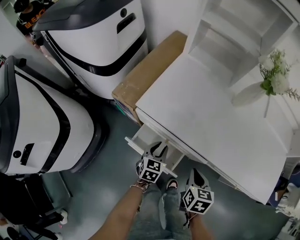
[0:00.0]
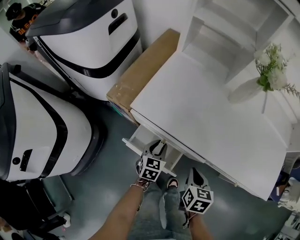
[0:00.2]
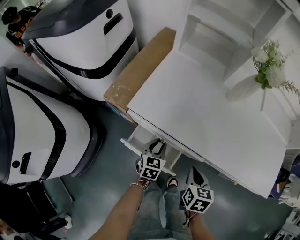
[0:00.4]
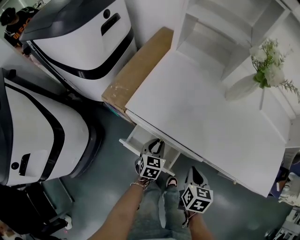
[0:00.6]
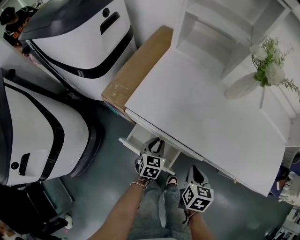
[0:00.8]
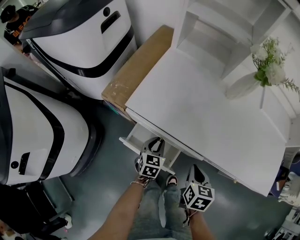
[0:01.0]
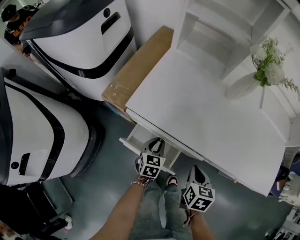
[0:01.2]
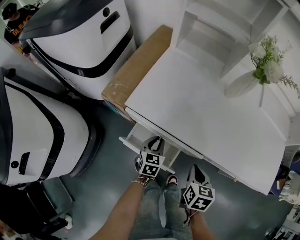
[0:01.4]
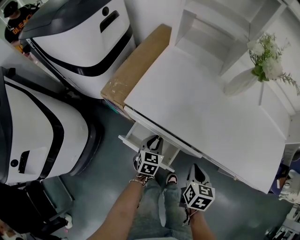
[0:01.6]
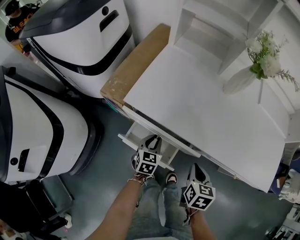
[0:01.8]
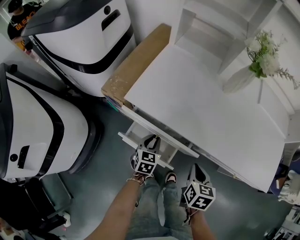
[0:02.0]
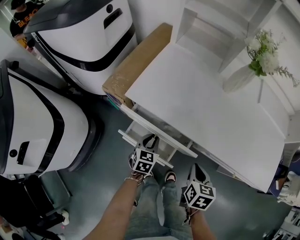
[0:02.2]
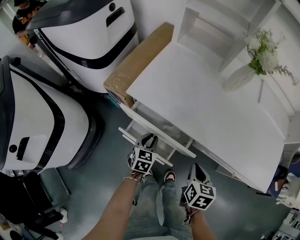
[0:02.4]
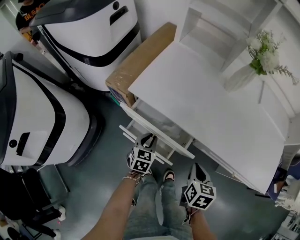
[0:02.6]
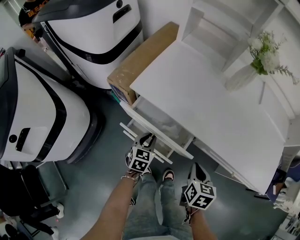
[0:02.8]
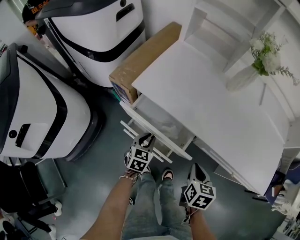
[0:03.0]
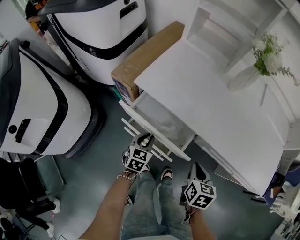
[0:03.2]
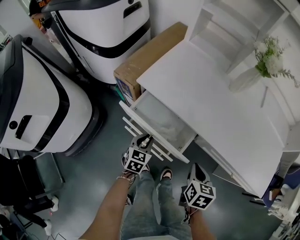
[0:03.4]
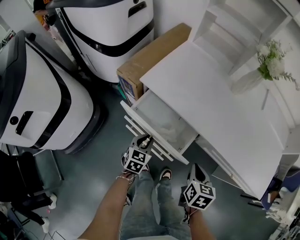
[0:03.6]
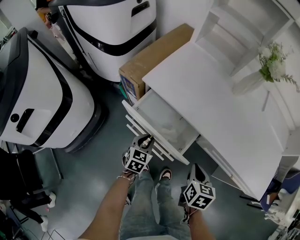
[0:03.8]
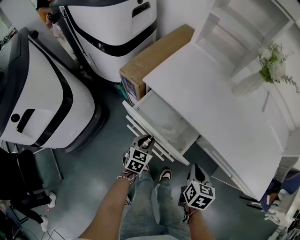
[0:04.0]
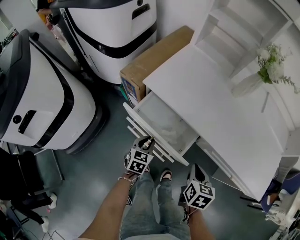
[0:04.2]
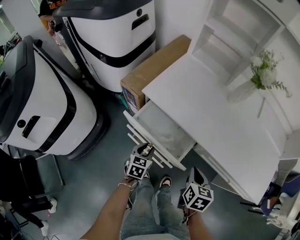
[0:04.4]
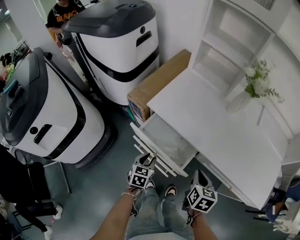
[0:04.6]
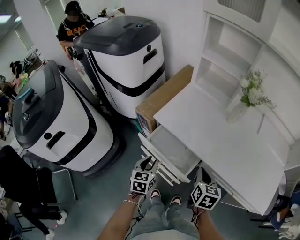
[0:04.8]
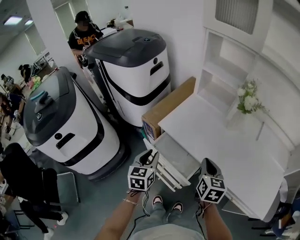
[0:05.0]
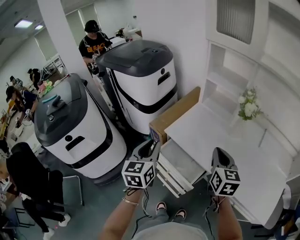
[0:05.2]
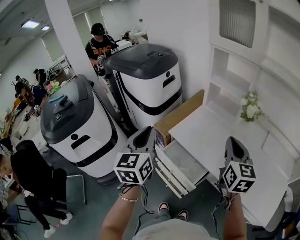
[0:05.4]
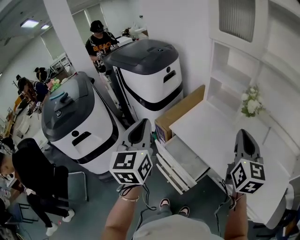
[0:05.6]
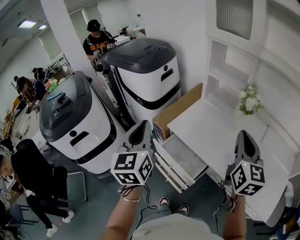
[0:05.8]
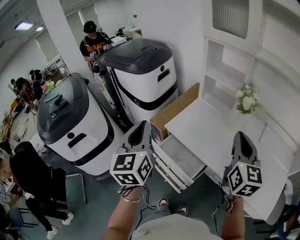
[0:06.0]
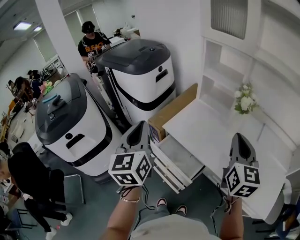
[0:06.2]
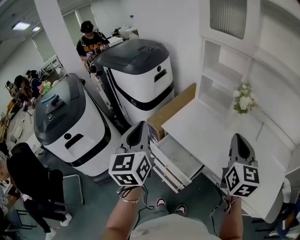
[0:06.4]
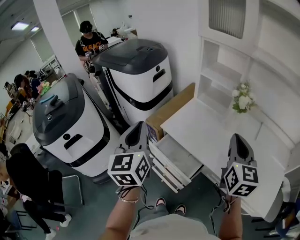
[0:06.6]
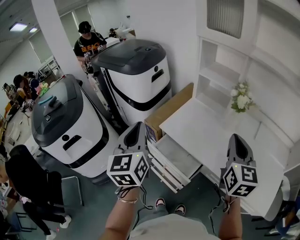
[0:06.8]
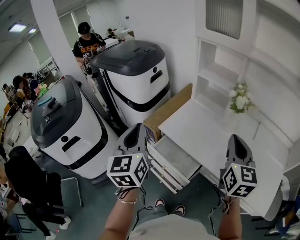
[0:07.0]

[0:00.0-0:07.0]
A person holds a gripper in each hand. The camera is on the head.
0:00.0 to 0:01.4: The grippers make only small movements.
0:01.4 to 0:02.8: The left gripper moves backward, roughly 5 cm.
0:02.8 to 0:04.2: The grippers move only a little.
0:04.2 to 0:05.6: The two grippers go approximately 50 cm upward. The right gripper angles its fingers upward, by some 40 degrees. Meanwhile the left gripper points its fingers some 40 degrees further upward.
0:05.6 to 0:07.0: The grippers move only a little.

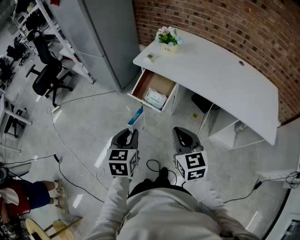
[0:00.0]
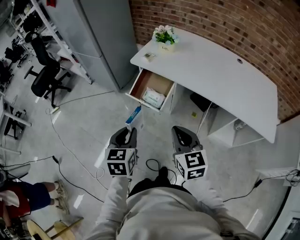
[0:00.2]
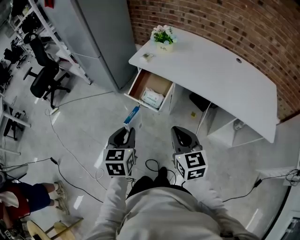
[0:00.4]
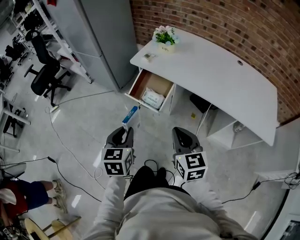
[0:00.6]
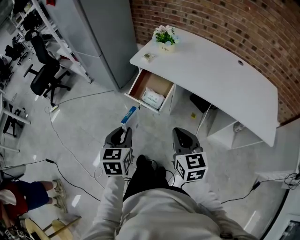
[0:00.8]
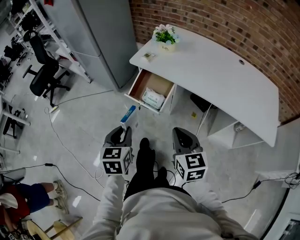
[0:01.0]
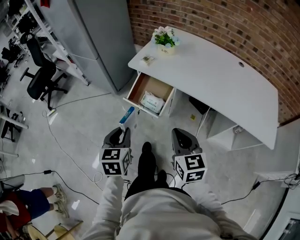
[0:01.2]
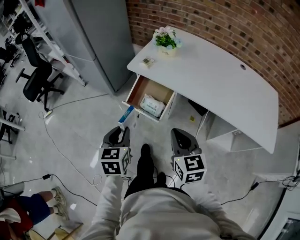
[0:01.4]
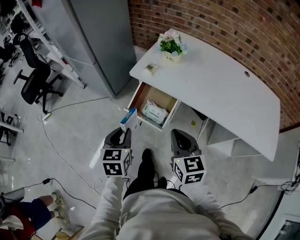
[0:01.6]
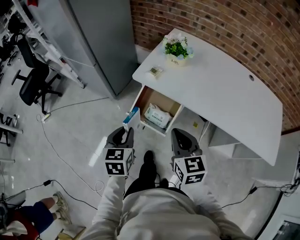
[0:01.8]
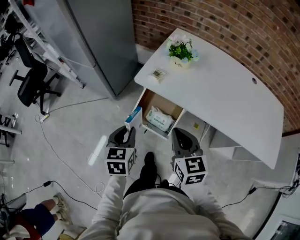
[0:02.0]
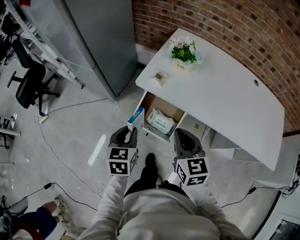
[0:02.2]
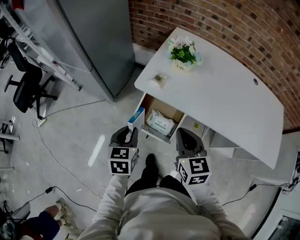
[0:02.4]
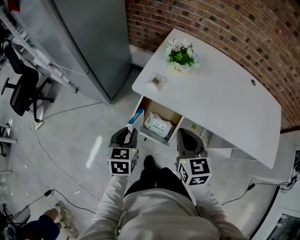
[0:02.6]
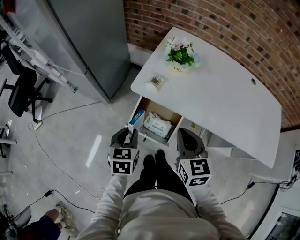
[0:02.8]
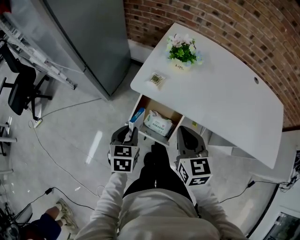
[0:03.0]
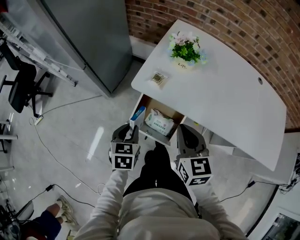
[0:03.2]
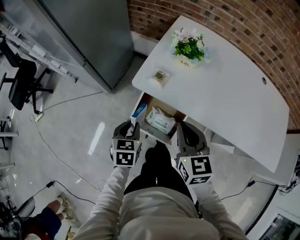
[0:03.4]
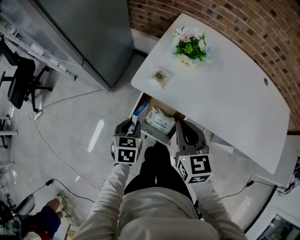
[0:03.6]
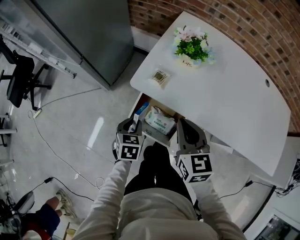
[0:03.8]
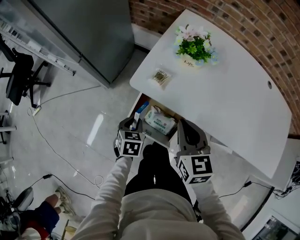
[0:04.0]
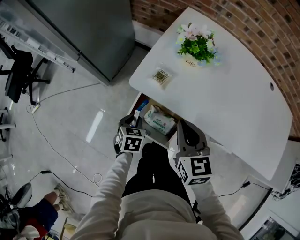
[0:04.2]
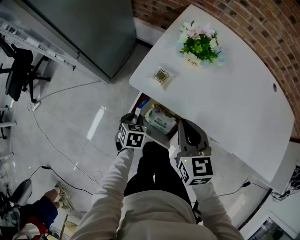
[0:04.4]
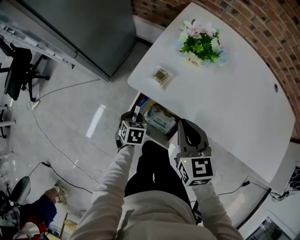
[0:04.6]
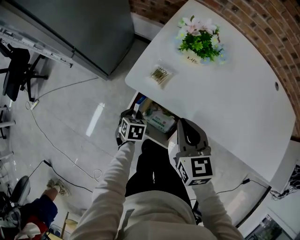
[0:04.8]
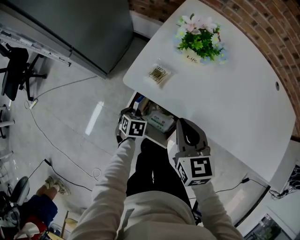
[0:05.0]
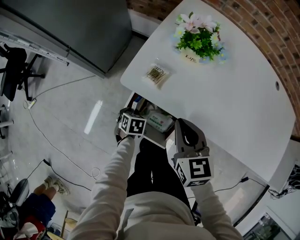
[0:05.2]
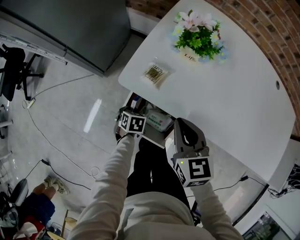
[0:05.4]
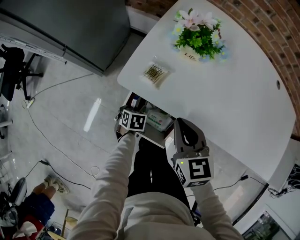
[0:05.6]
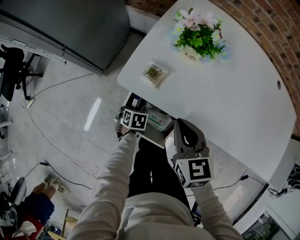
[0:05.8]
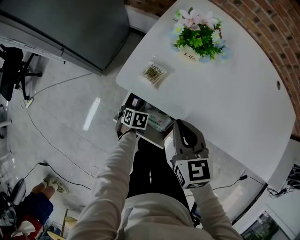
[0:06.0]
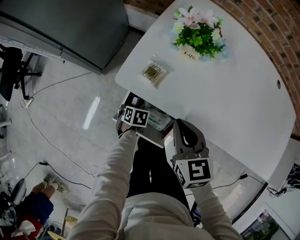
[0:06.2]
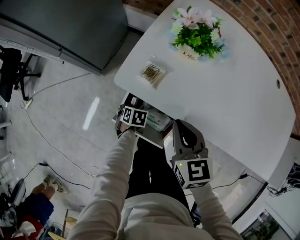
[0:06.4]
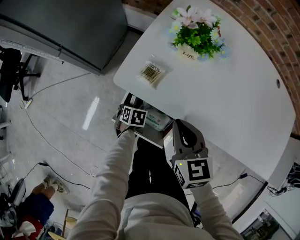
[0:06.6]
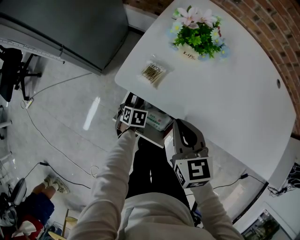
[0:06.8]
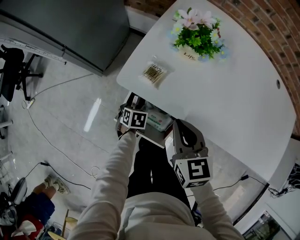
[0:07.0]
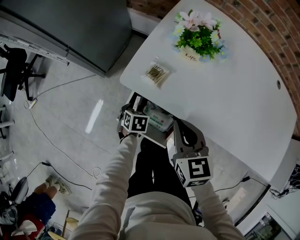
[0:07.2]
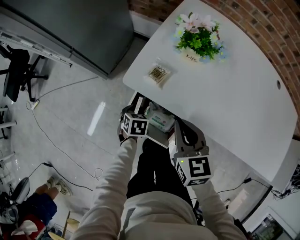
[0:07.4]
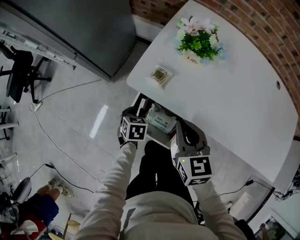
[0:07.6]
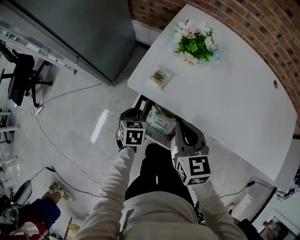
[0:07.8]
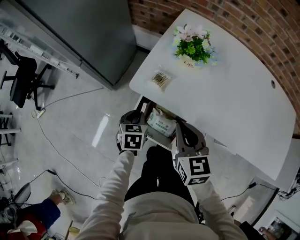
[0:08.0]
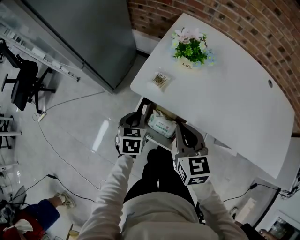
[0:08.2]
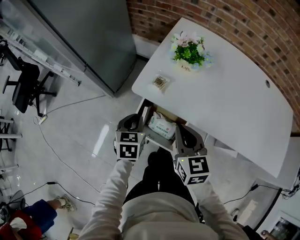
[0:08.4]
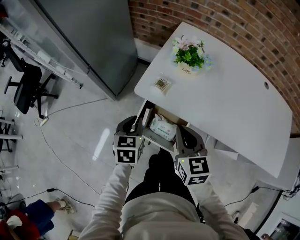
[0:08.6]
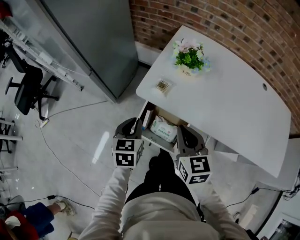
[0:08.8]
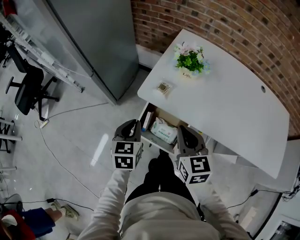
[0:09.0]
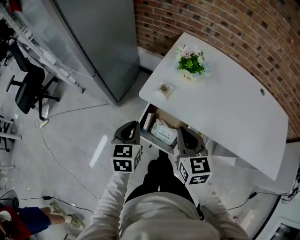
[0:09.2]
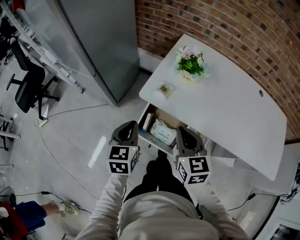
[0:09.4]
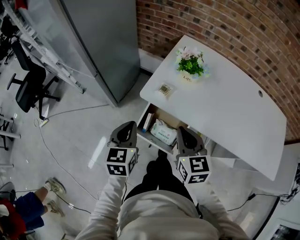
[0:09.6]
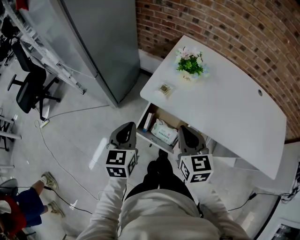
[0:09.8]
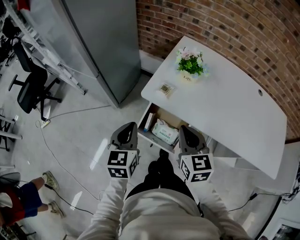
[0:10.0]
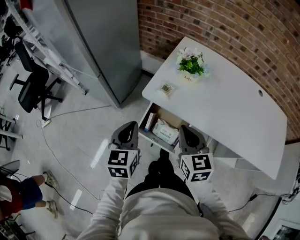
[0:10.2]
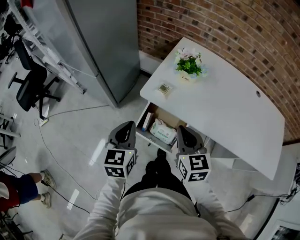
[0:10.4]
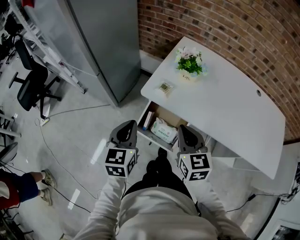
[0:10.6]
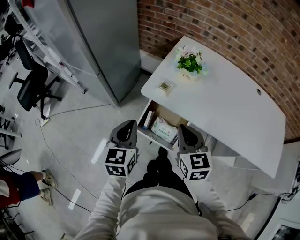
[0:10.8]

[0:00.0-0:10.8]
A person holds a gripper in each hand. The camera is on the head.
0:00.0 to 0:01.6: Both grippers move forward, roughly 15 cm.
0:01.6 to 0:03.0: The right gripper is displaced forward by approximately 15 cm. Meanwhile the left gripper heads forward and downward, covering some 20 cm.
0:03.0 to 0:04.6: The right gripper moves forward and downward, approximately 10 cm. Meanwhile the left gripper shifts about 20 cm downward and forward.
0:04.6 to 0:06.2: The left gripper travels downward by roughly 10 cm.
0:06.2 to 0:07.8: The left gripper is displaced upward by approximately 15 cm, and turns by roughly 20 degrees.
0:07.8 to 0:09.2: The right gripper shifts about 5 cm upward; the left gripper is displaced upward by some 20 cm, and rotates roughly 20 degrees.
0:09.2 to 0:10.8: The left gripper shifts approximately 5 cm upward.

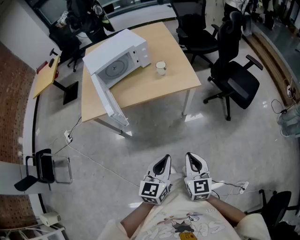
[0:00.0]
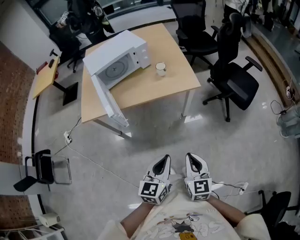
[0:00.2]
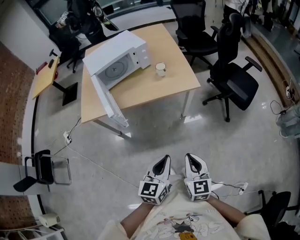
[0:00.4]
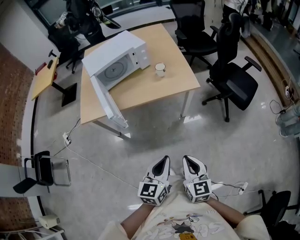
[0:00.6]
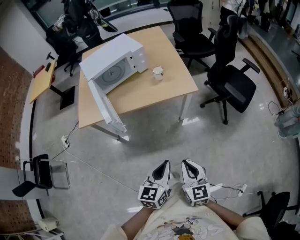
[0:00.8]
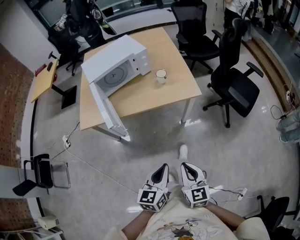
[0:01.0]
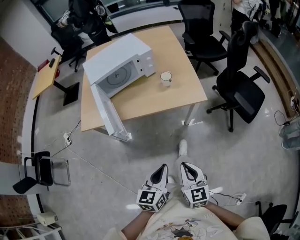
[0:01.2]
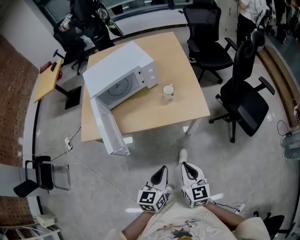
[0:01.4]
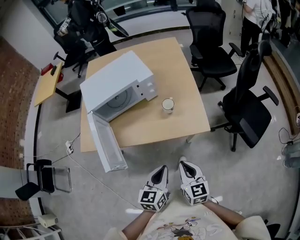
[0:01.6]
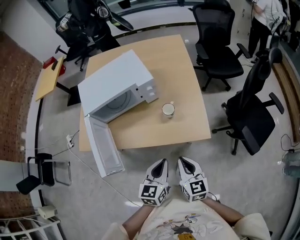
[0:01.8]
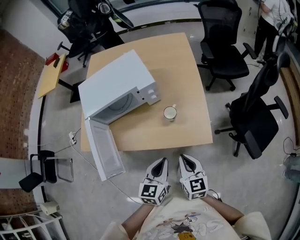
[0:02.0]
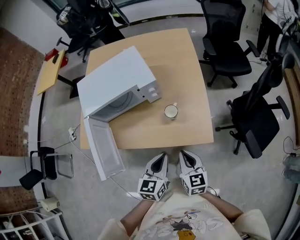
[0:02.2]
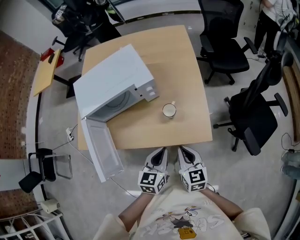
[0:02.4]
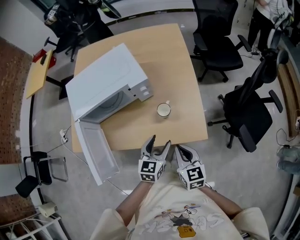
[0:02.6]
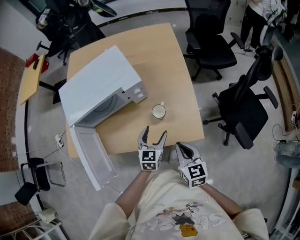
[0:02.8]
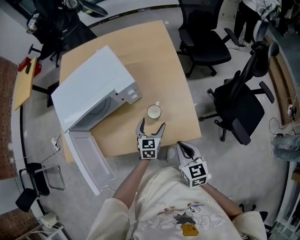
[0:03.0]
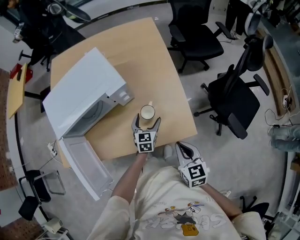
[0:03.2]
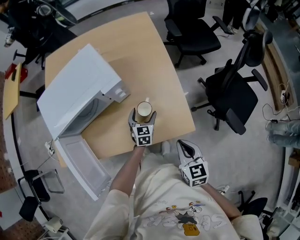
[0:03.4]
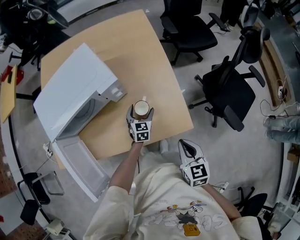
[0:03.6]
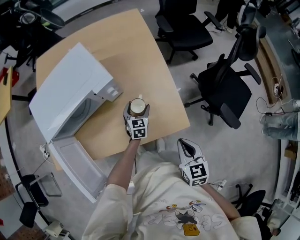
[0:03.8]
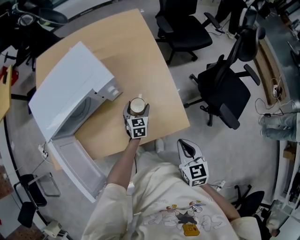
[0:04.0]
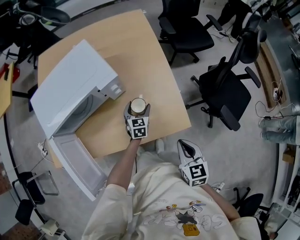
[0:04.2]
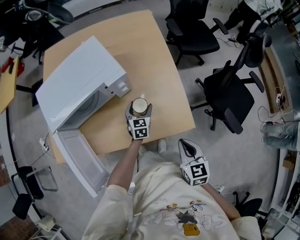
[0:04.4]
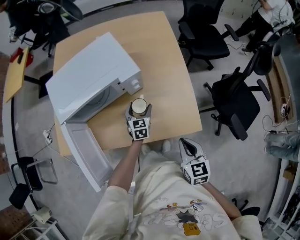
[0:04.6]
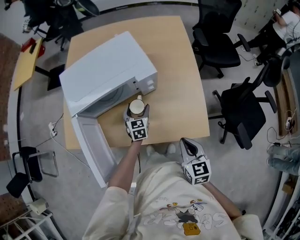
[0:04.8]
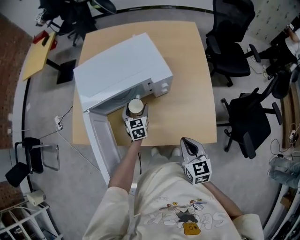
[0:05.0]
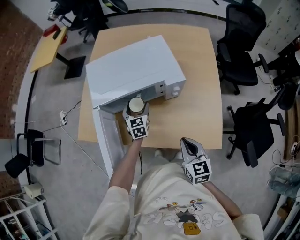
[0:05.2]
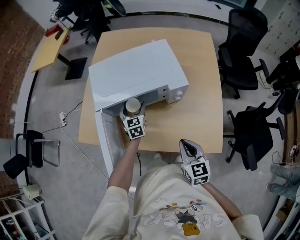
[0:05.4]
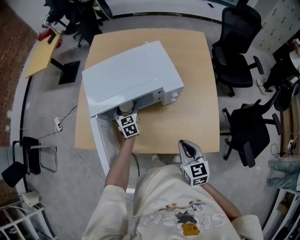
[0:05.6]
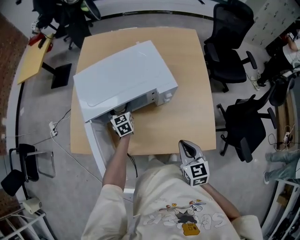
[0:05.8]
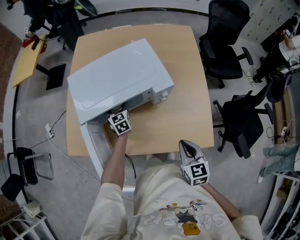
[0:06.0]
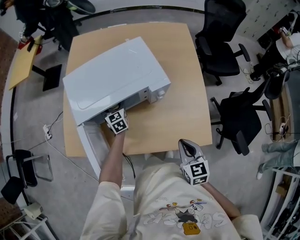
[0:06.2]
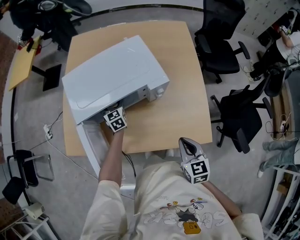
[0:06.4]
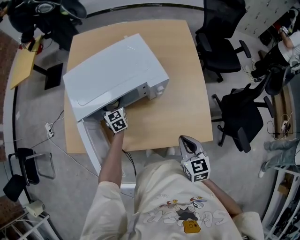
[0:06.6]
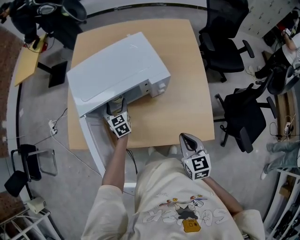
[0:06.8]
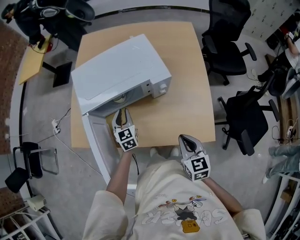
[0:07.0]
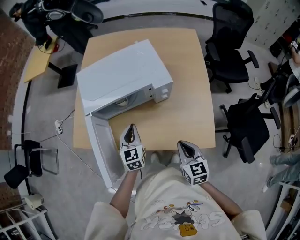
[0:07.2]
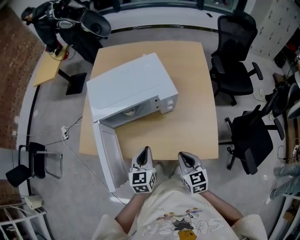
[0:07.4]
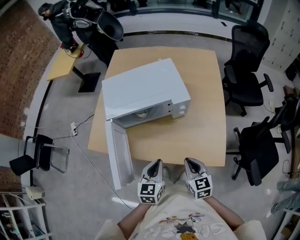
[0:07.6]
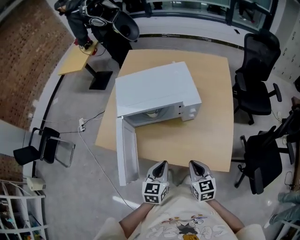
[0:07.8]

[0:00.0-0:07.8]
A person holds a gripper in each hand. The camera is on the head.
0:00.0 to 0:01.6: The two grippers go roughly 30 cm forward.
0:01.6 to 0:03.2: The left gripper shifts approximately 40 cm forward and downward, and opens up. The right gripper travels forward by approximately 20 cm.
0:03.2 to 0:04.6: The left gripper goes some 10 cm to the left.
0:04.6 to 0:06.2: The left gripper shifts roughly 30 cm to the left and forward, and changes its angle by roughly 20 degrees, while the right gripper goes about 10 cm forward and to the left.
0:06.2 to 0:07.8: The left gripper moves backward, some 35 cm, and closes, while the right gripper shifts by about 5 cm.
